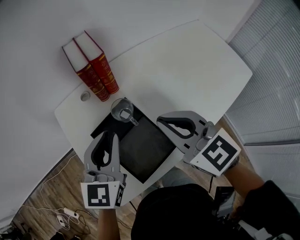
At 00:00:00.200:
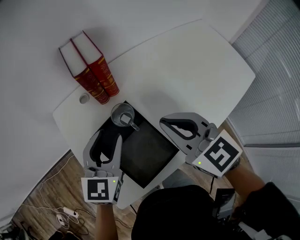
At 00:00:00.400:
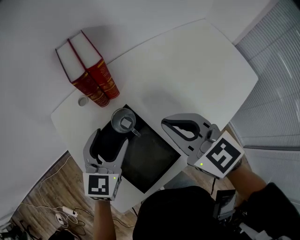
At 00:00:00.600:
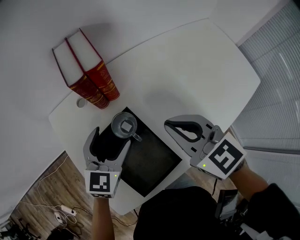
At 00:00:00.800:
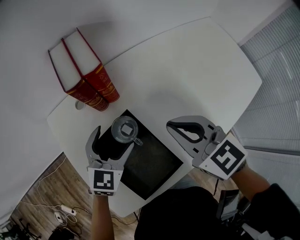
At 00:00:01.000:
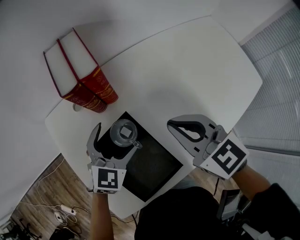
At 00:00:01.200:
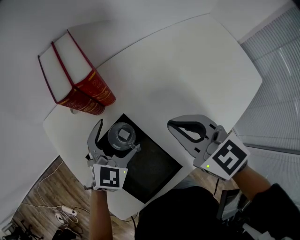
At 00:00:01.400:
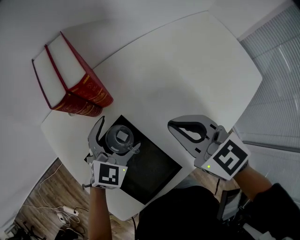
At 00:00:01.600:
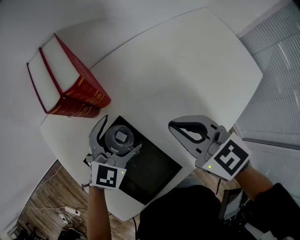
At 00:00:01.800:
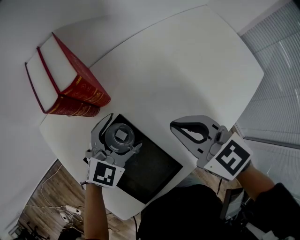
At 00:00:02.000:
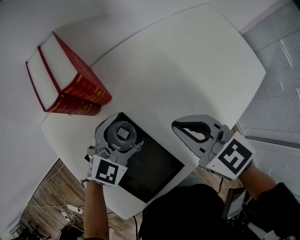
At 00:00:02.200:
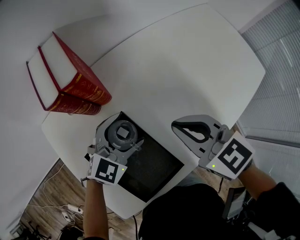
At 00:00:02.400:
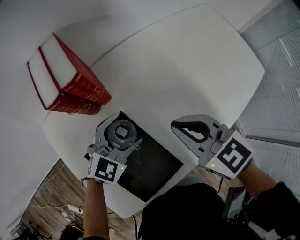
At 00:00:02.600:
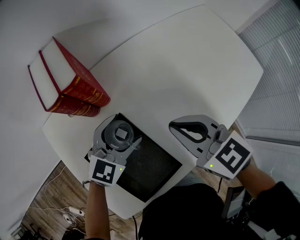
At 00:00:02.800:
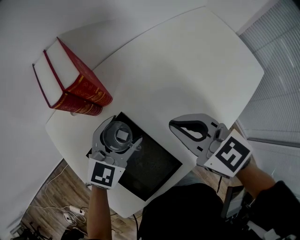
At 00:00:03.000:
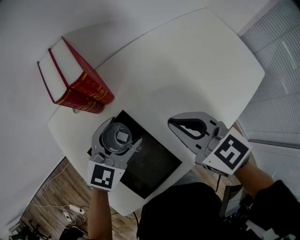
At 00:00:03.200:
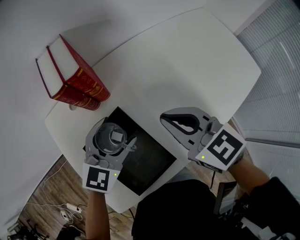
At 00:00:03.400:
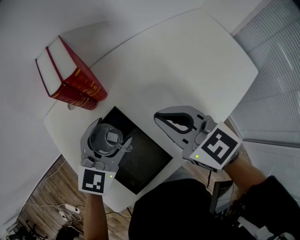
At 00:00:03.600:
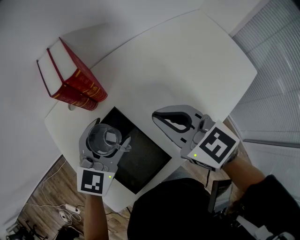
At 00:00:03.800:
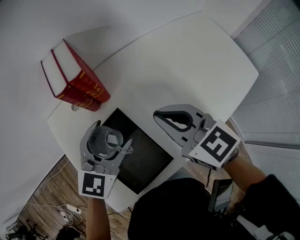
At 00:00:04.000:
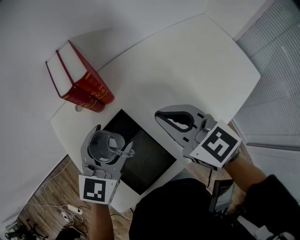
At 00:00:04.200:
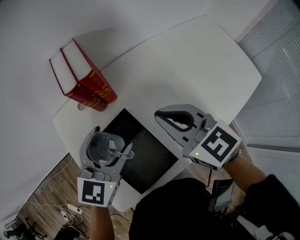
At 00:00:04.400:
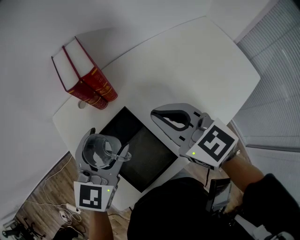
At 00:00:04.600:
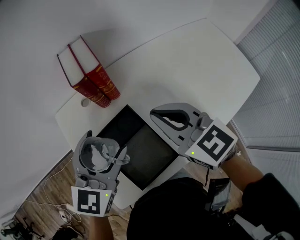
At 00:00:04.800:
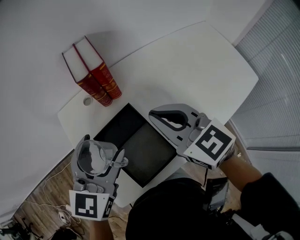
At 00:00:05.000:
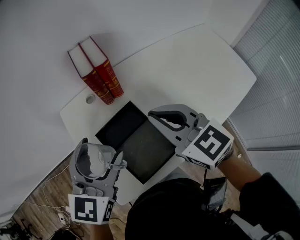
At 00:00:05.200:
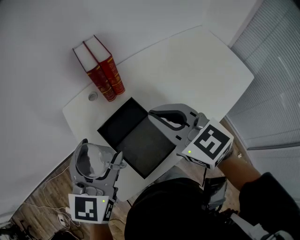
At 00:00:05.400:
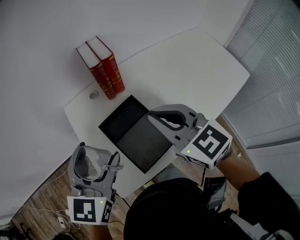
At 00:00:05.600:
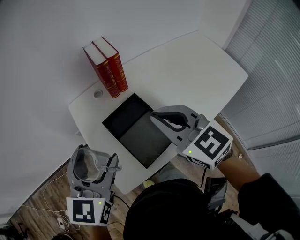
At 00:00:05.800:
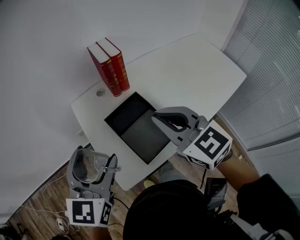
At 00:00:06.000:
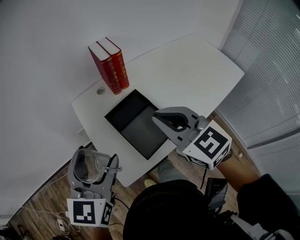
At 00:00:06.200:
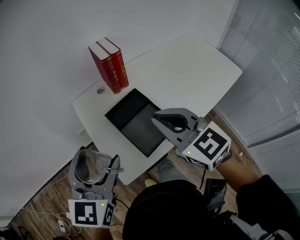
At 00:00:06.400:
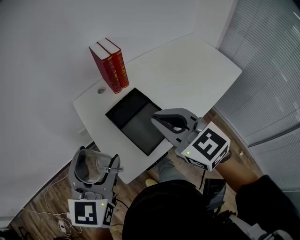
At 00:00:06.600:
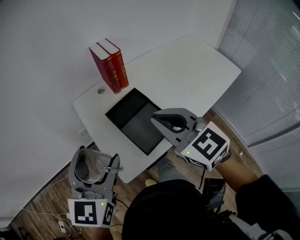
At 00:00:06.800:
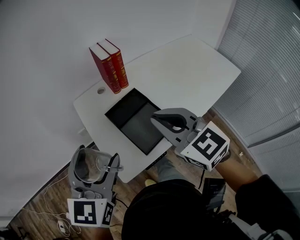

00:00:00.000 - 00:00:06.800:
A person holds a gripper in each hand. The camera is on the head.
00:00:00.000 - 00:00:01.400: The left gripper travels downward, forward and to the right by some 20 cm, swivels some 30 degrees, and opens up; the right gripper goes some 15 cm forward, downward and to the right.
00:00:01.400 - 00:00:02.800: The grippers make only small movements.
00:00:02.800 - 00:00:04.000: The left gripper heads upward, covering some 10 cm.
00:00:04.000 - 00:00:05.400: The grippers both shift backward, to the left and upward by some 15 cm.
00:00:05.400 - 00:00:06.800: The right gripper goes some 10 cm backward. The left gripper shifts approximately 10 cm backward and to the left.

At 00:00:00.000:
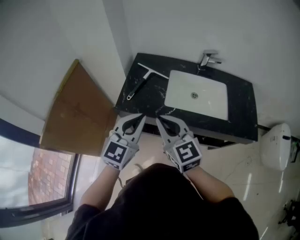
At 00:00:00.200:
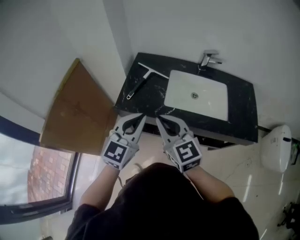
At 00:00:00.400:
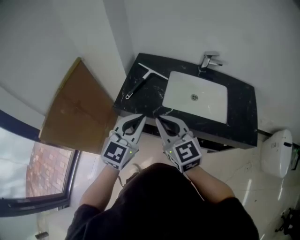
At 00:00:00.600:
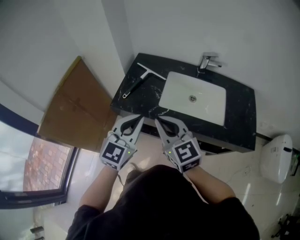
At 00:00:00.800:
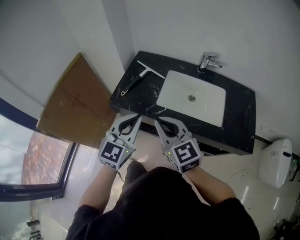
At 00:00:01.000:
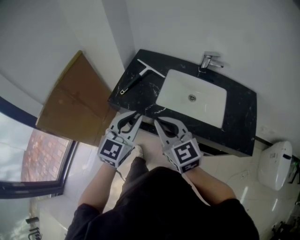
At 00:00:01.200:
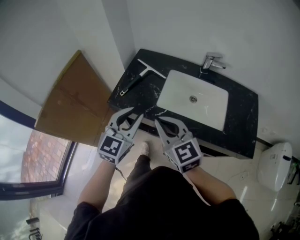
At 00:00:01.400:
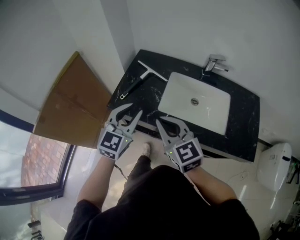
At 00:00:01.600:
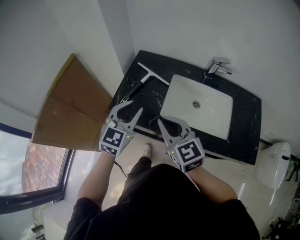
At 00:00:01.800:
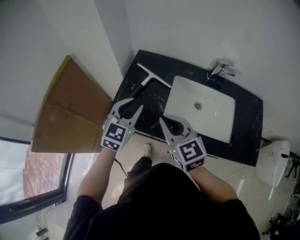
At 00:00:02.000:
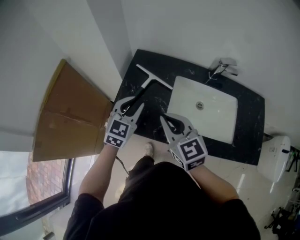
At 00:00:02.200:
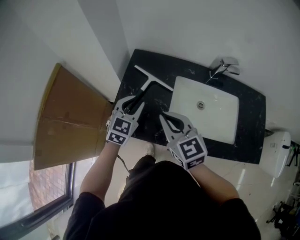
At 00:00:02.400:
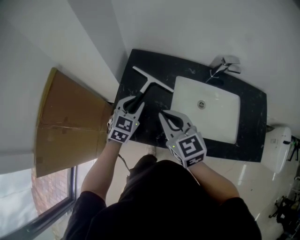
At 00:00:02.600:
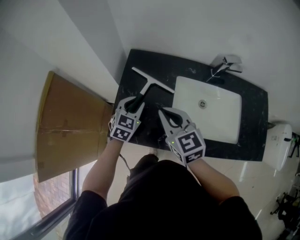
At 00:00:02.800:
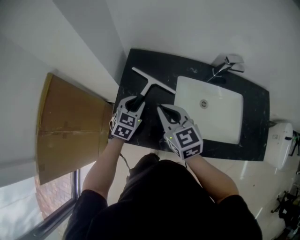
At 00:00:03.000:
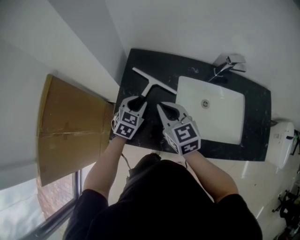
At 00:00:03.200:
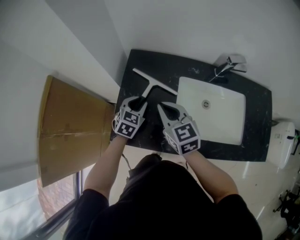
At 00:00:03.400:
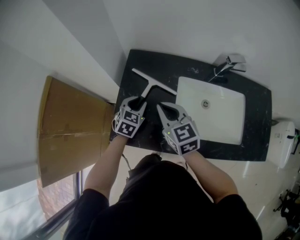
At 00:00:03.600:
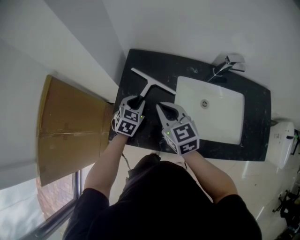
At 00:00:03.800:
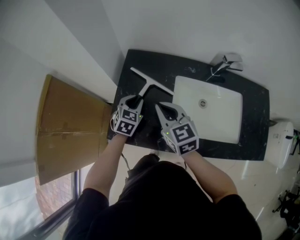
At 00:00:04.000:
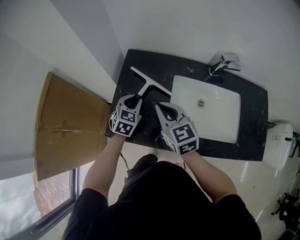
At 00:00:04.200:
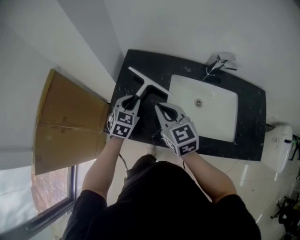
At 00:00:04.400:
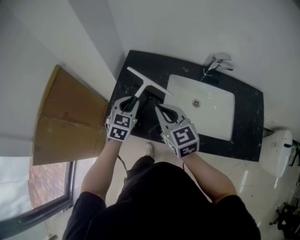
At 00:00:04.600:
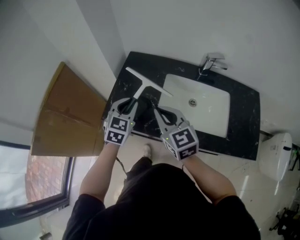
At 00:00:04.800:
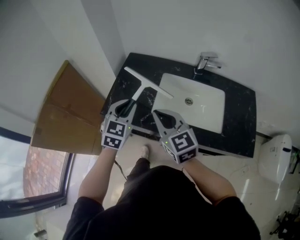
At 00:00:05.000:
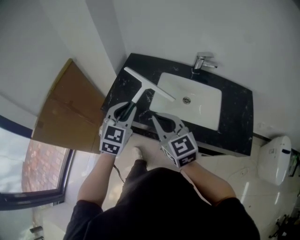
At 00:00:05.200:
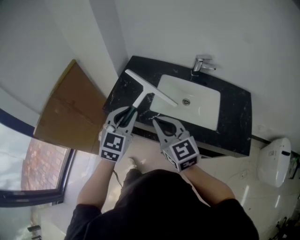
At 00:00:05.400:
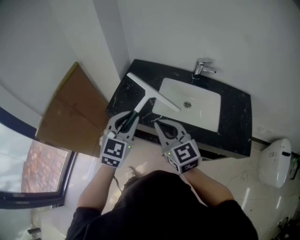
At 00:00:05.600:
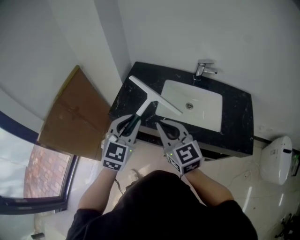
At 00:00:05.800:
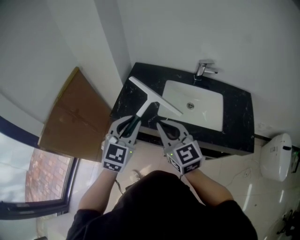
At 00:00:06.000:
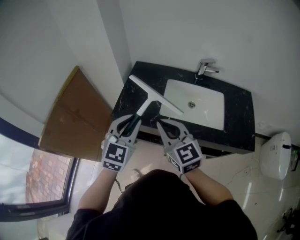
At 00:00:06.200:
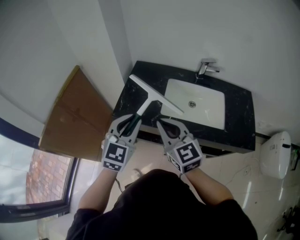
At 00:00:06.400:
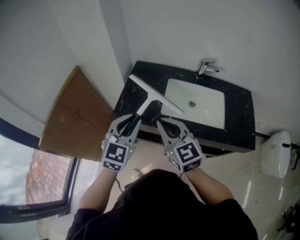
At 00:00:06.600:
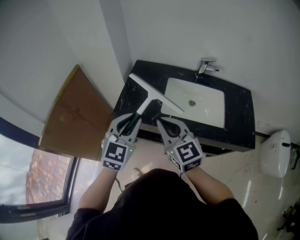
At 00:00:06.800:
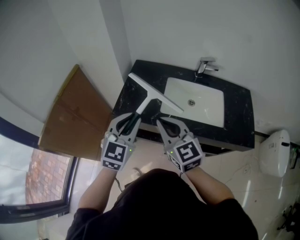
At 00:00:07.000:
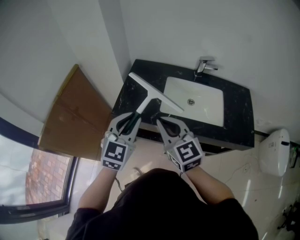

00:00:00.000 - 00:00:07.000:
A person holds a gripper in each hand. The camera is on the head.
00:00:00.000 - 00:00:01.400: The left gripper is displaced forward by about 5 cm, and opens its fingers; the right gripper is displaced to the right by some 5 cm.
00:00:01.400 - 00:00:02.800: The left gripper is displaced forward and downward by about 30 cm, and turns by about 20 degrees. The right gripper goes about 20 cm forward.
00:00:02.800 - 00:00:04.200: The grippers make only small movements.
00:00:04.200 - 00:00:05.600: The two grippers go approximately 30 cm backward and upward. The left gripper changes its angle by approximately 20 degrees.
00:00:05.600 - 00:00:07.000: The grippers stay close to where they were, moving slightly.

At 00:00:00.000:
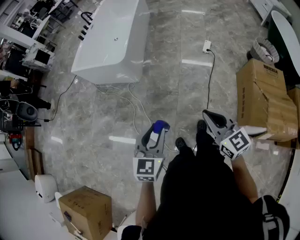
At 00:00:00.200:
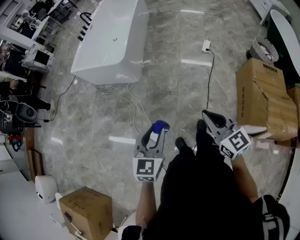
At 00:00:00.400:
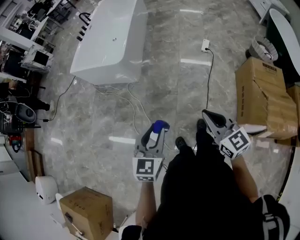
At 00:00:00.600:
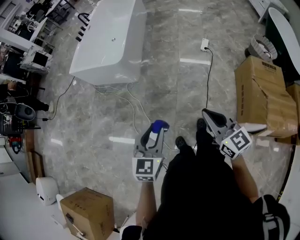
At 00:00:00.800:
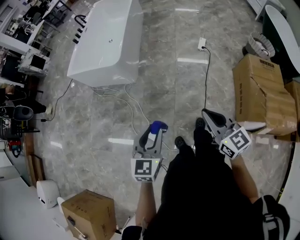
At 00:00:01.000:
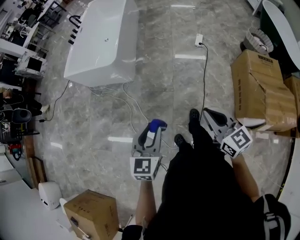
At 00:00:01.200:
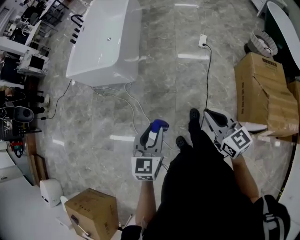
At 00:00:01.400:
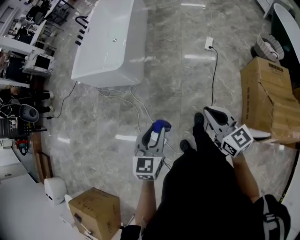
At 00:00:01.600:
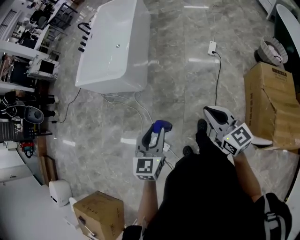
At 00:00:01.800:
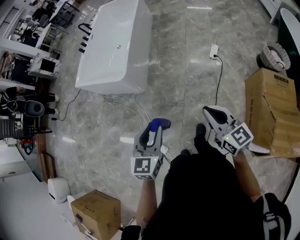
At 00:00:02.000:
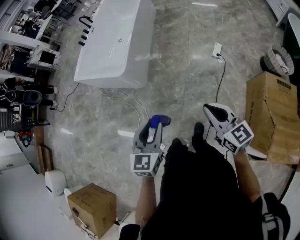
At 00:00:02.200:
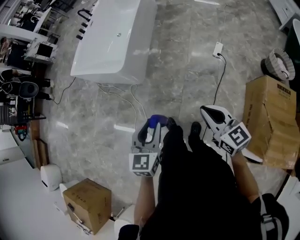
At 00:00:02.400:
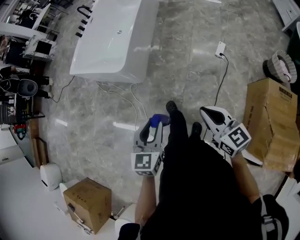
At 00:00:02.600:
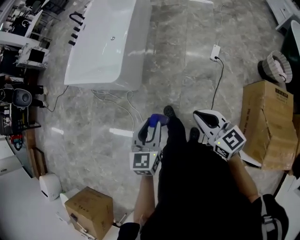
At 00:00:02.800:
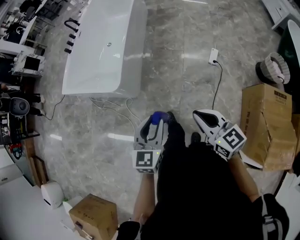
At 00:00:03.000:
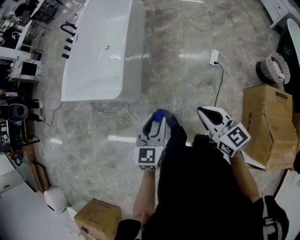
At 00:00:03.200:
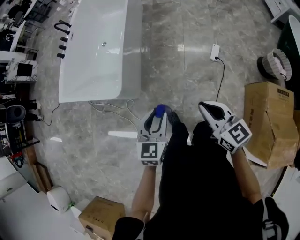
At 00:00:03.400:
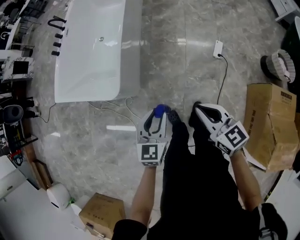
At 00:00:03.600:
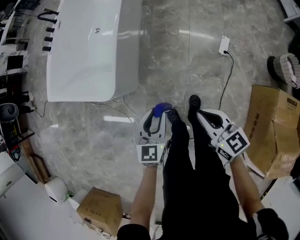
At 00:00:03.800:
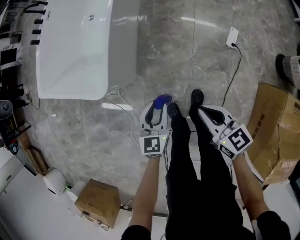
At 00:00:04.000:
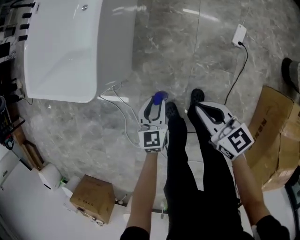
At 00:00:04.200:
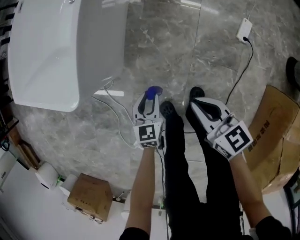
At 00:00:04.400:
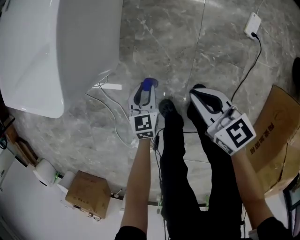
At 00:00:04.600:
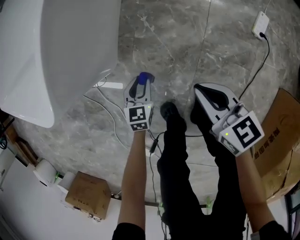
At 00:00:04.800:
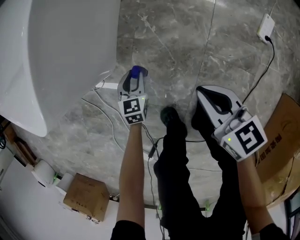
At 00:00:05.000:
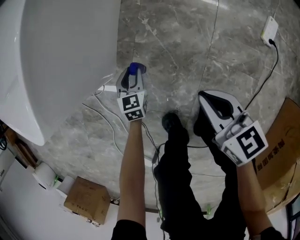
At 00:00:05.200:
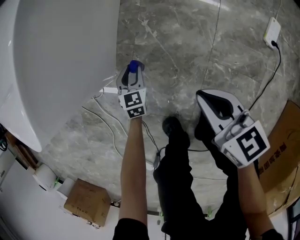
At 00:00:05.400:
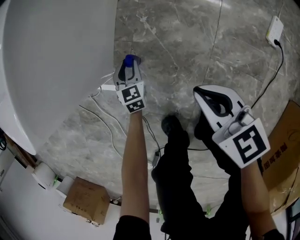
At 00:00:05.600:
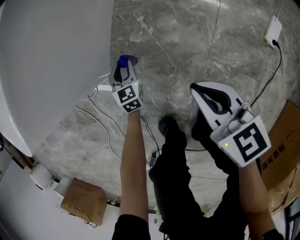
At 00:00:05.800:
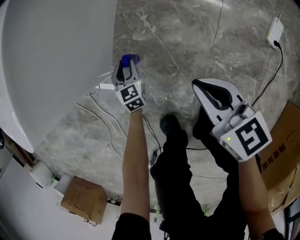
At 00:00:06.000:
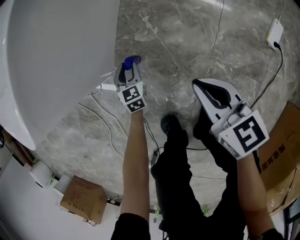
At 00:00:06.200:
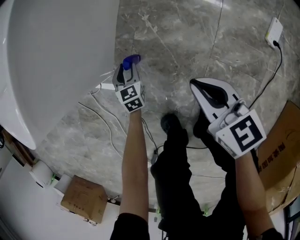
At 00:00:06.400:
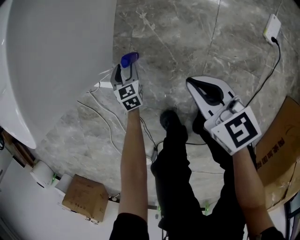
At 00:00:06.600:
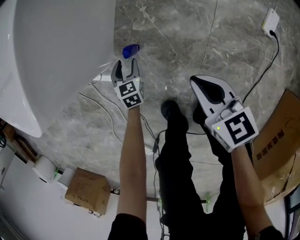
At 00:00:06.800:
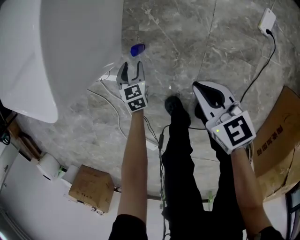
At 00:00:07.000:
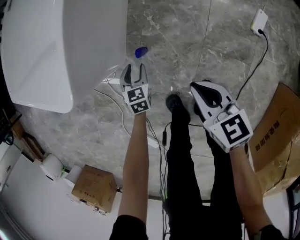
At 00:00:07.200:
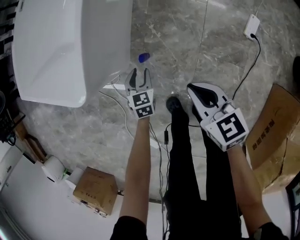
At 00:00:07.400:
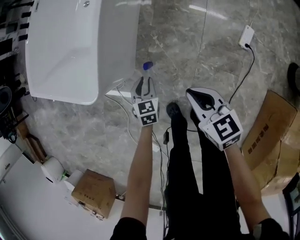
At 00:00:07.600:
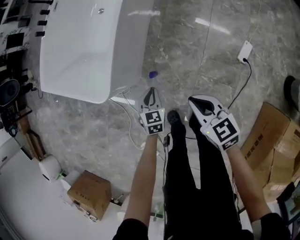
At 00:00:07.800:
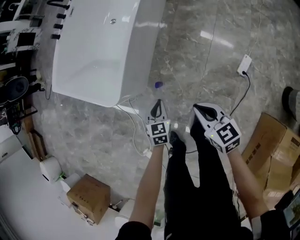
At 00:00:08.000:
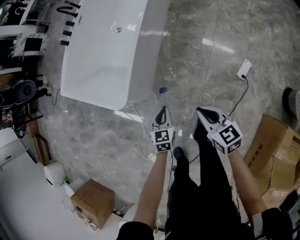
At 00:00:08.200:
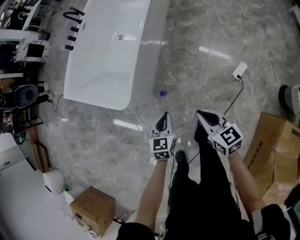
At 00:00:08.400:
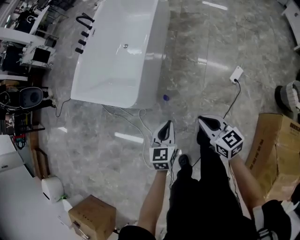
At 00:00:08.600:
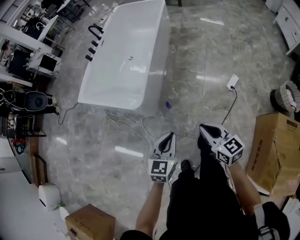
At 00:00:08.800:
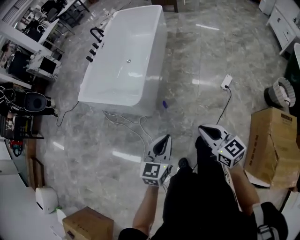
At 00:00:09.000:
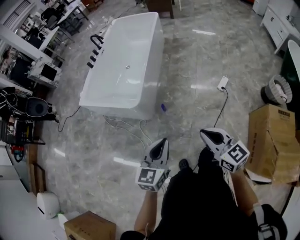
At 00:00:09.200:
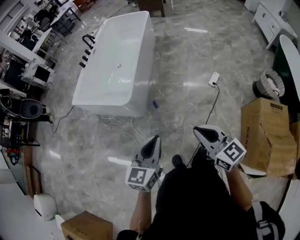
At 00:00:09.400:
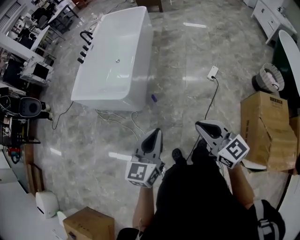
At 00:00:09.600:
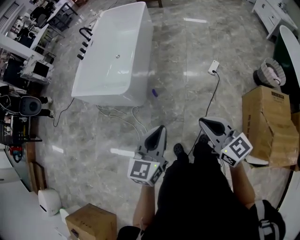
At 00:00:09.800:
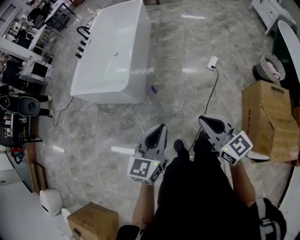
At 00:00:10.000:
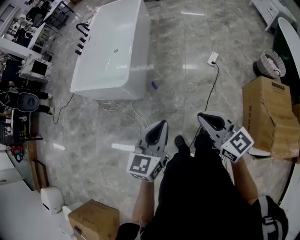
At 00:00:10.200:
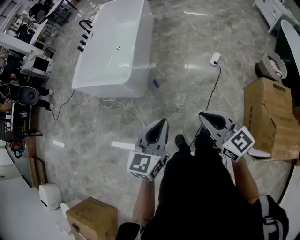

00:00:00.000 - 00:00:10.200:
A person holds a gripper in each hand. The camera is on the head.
00:00:00.000 - 00:00:01.400: The grippers both shift forward by some 10 cm.
00:00:01.400 - 00:00:03.000: The two grippers go about 40 cm forward.
00:00:03.000 - 00:00:04.400: Both grippers travel together downward and forward, approximately 60 cm. The left gripper rotates roughly 20 degrees; the right gripper rotates about 20 degrees.
00:00:04.400 - 00:00:05.800: The left gripper shifts roughly 25 cm downward and forward; the right gripper is displaced downward and forward by about 15 cm.
00:00:05.800 - 00:00:07.200: The two grippers go roughly 25 cm upward.
00:00:07.200 - 00:00:08.800: Both grippers move upward and backward, about 60 cm. The left gripper changes its angle by some 30 degrees, and closes its fingers.
00:00:08.800 - 00:00:10.200: The left gripper goes about 15 cm backward and upward; the right gripper heads backward, covering some 20 cm.
